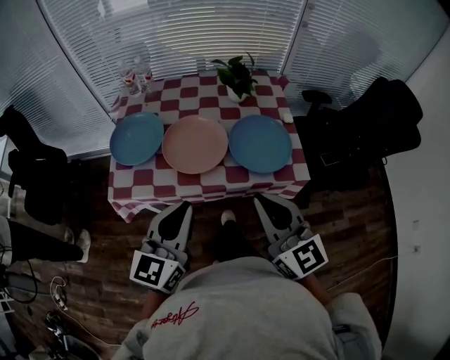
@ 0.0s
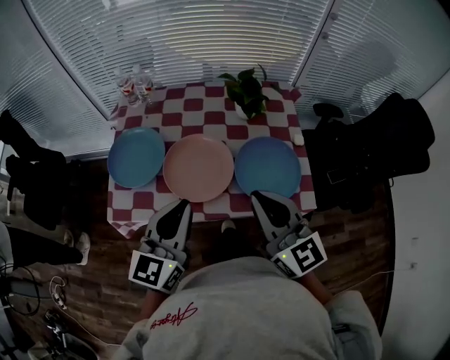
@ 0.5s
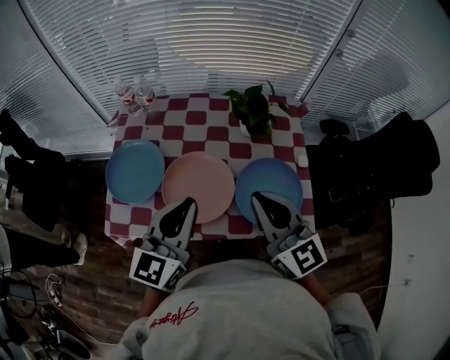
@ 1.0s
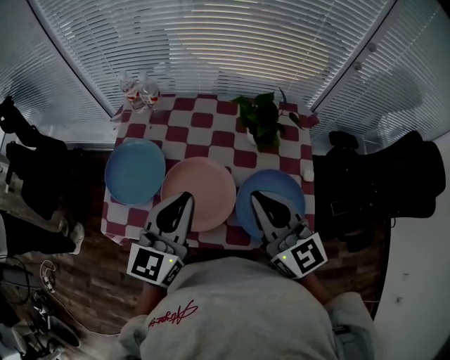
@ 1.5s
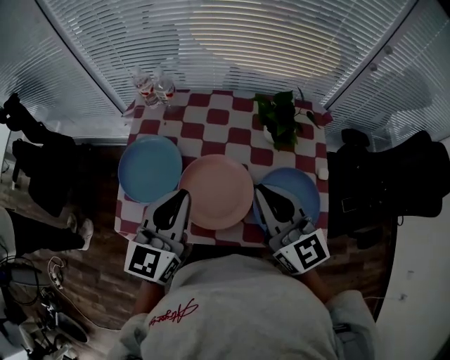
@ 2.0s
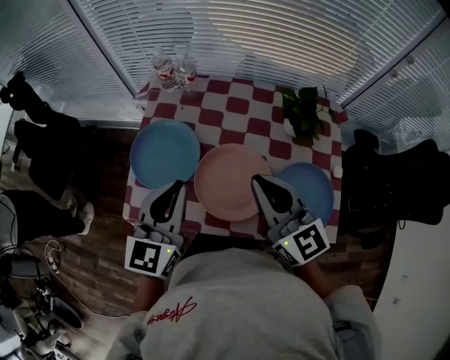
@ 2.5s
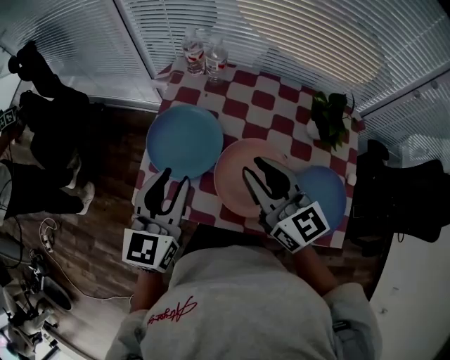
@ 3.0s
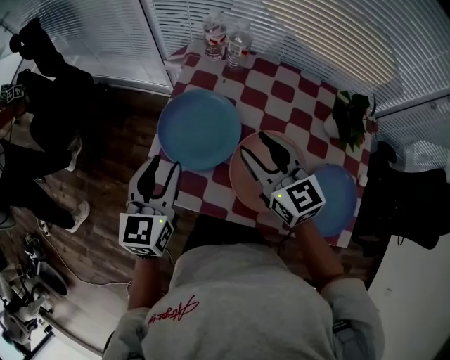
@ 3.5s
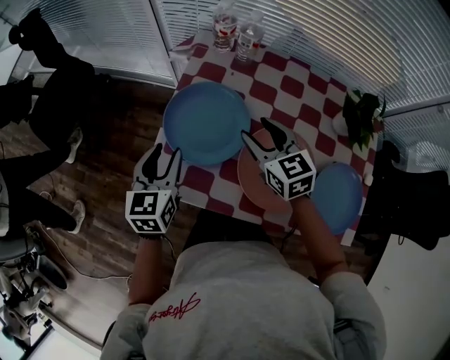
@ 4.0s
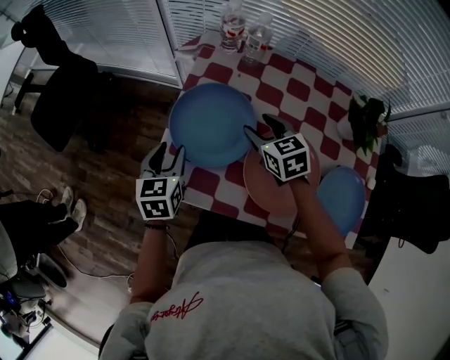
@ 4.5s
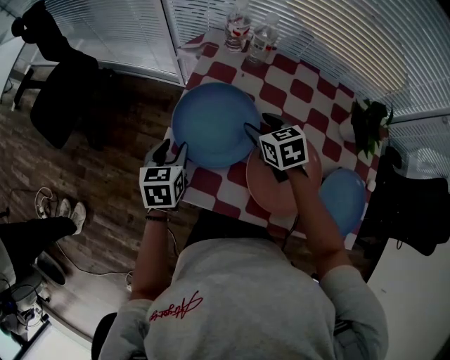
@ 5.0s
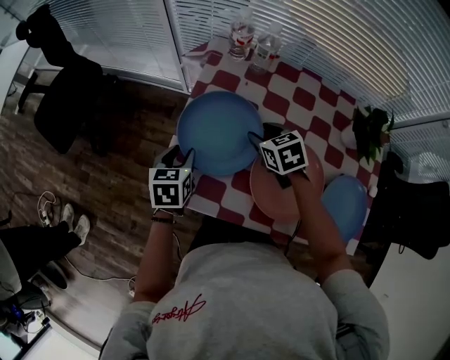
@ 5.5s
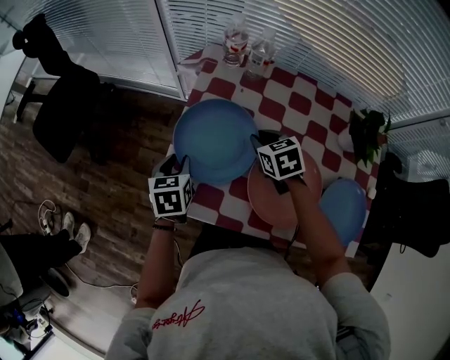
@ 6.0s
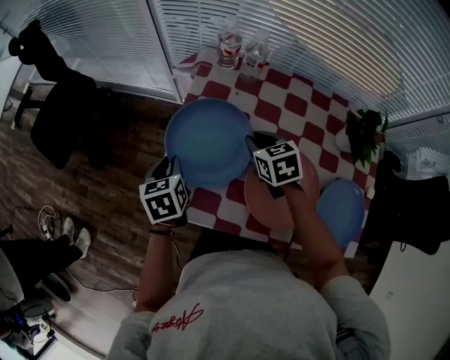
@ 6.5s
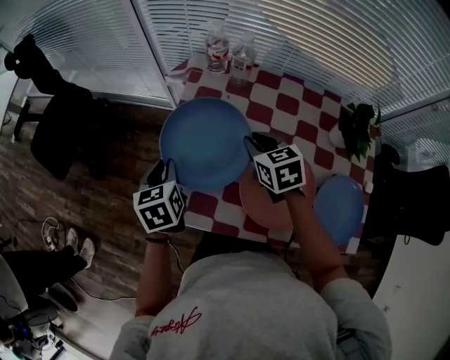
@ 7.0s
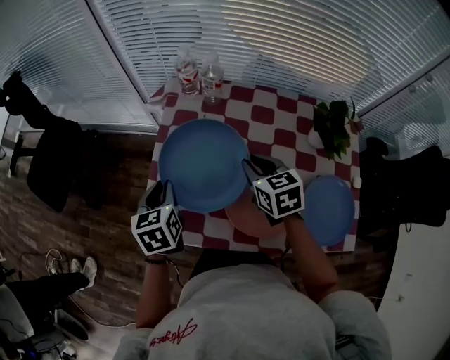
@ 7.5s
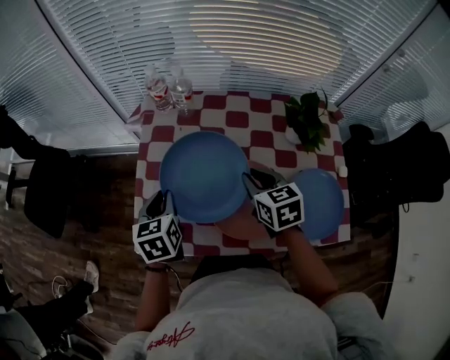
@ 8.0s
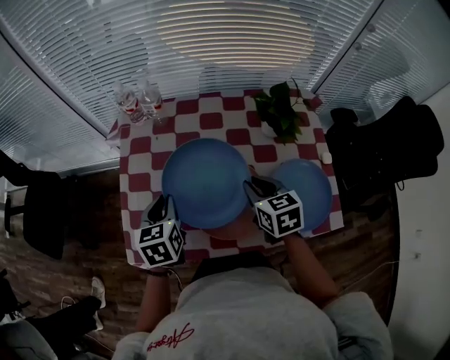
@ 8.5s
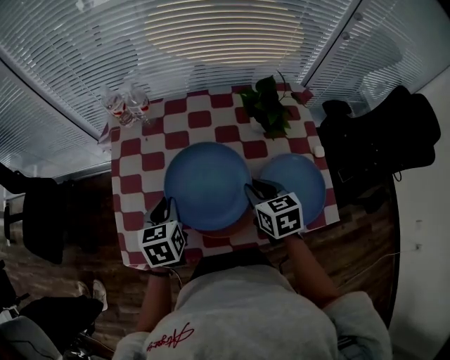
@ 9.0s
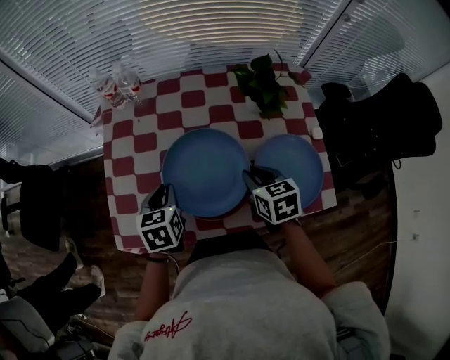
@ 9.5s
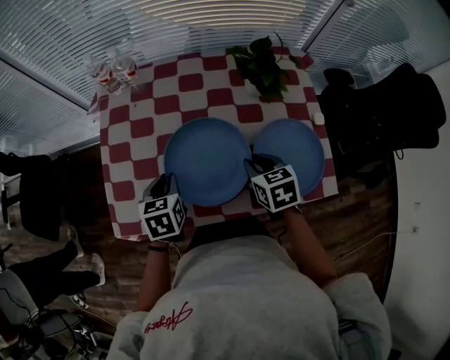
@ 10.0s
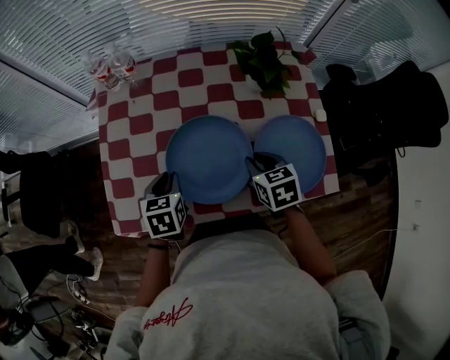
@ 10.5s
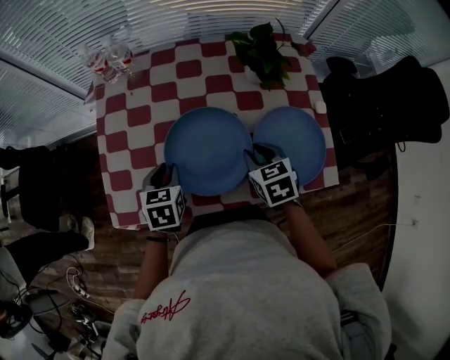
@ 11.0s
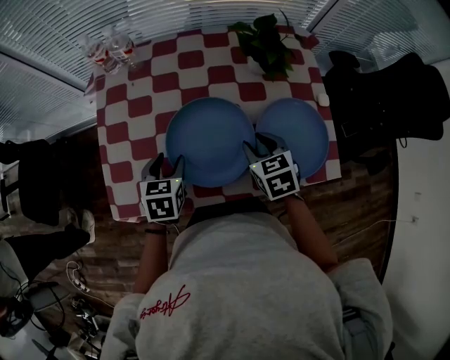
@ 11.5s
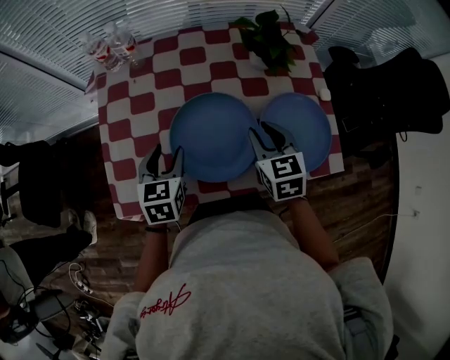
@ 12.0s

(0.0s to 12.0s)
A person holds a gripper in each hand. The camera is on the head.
0.0s - 2.0s: The two grippers go about 25 cm forward.
2.0s - 4.0s: The left gripper travels to the left and downward by some 30 cm, turns by approximately 30 degrees, and opens; the right gripper shifts some 30 cm to the left, downward and forward, swivels some 30 degrees, and opens up.
4.0s - 6.0s: The grippers both shift downward by roughly 10 cm. The right gripper changes its angle by some 20 degrees, and closes. The left gripper changes its angle by roughly 20 degrees.
6.0s - 8.0s: The right gripper travels to the right, backward and upward by some 15 cm, and swivels roughly 20 degrees. The left gripper heads to the right and upward, covering approximately 15 cm.
8.0s - 10.0s: The left gripper shifts roughly 15 cm to the right and downward; the right gripper shifts approximately 15 cm to the right, backward and downward.
10.0s - 12.0s: The left gripper opens up.

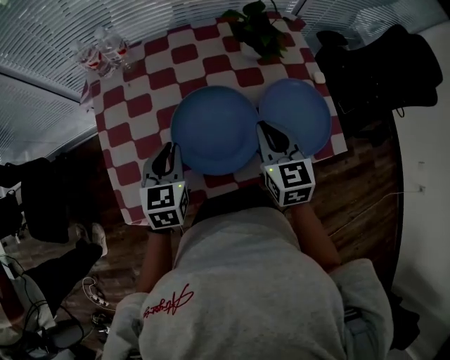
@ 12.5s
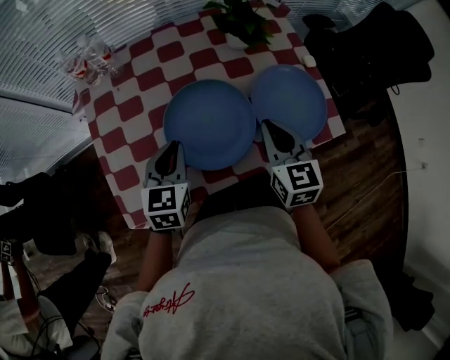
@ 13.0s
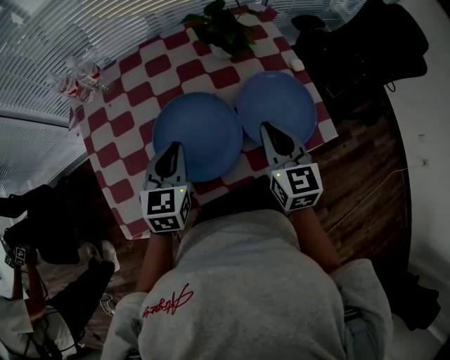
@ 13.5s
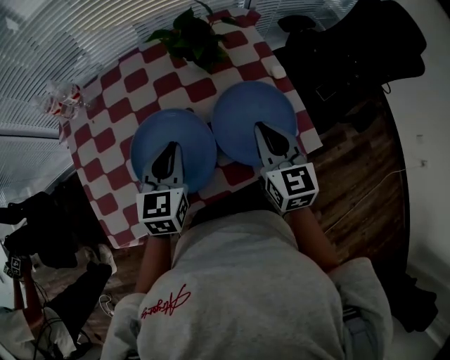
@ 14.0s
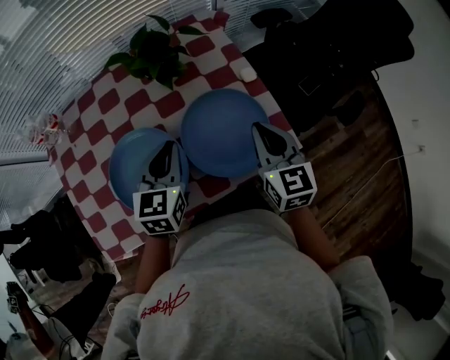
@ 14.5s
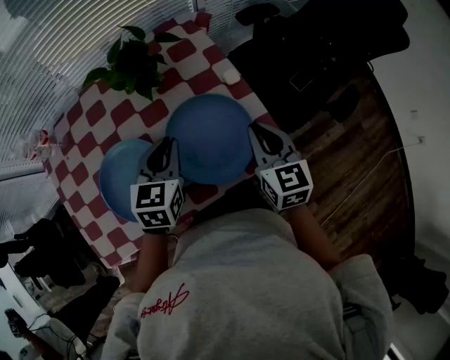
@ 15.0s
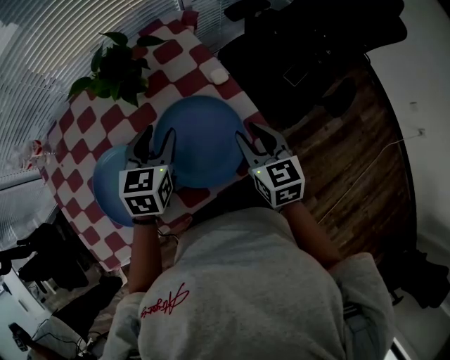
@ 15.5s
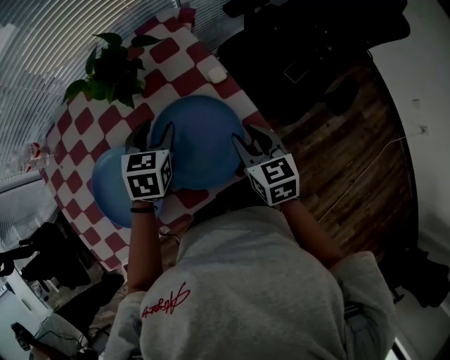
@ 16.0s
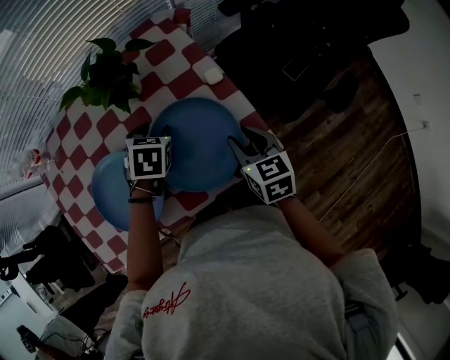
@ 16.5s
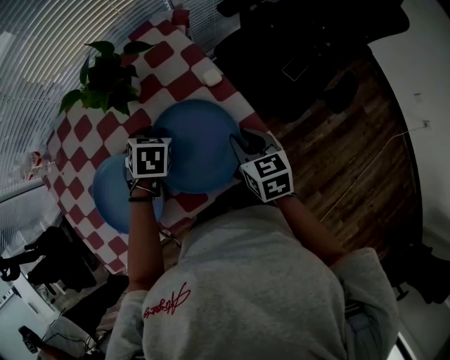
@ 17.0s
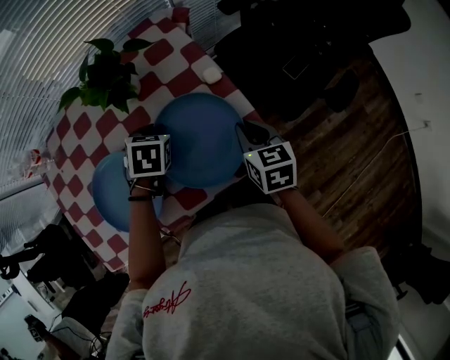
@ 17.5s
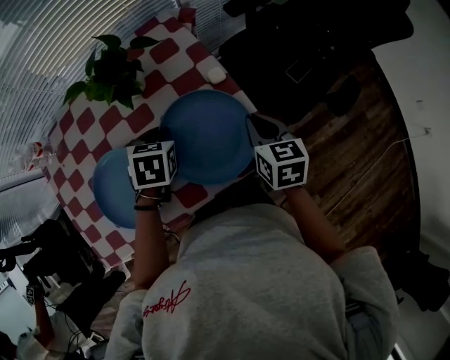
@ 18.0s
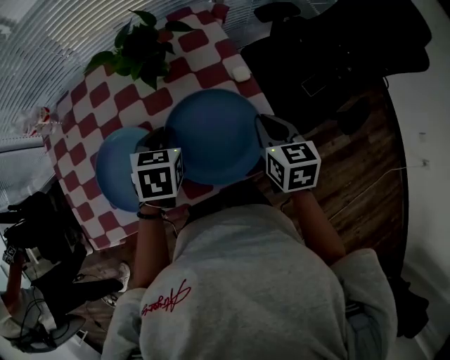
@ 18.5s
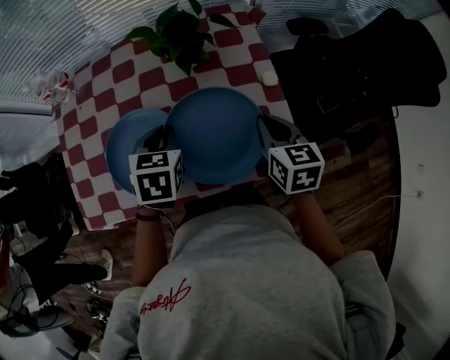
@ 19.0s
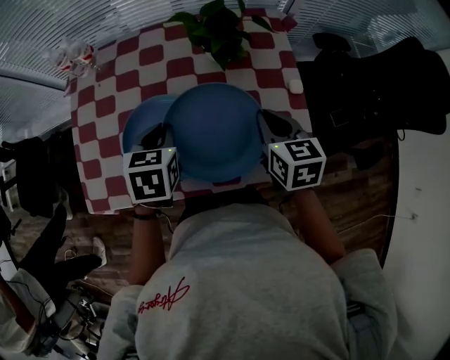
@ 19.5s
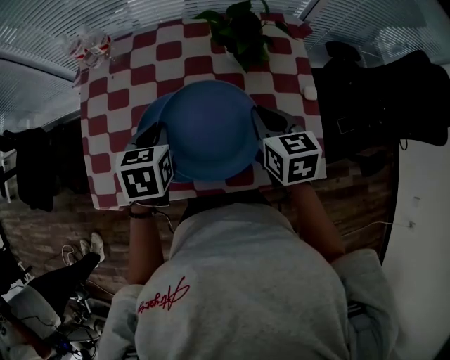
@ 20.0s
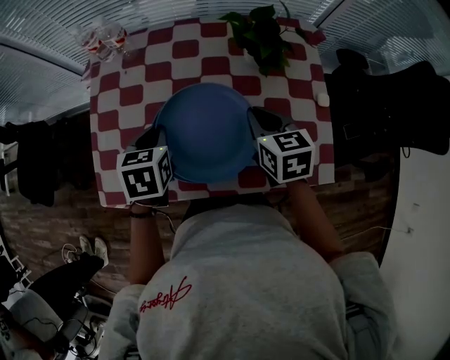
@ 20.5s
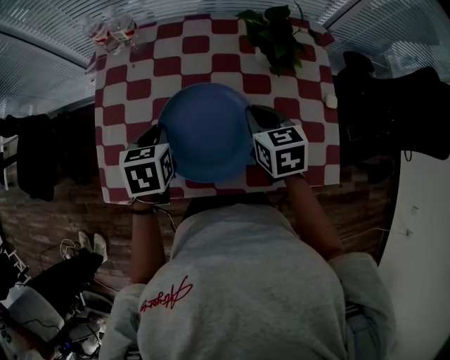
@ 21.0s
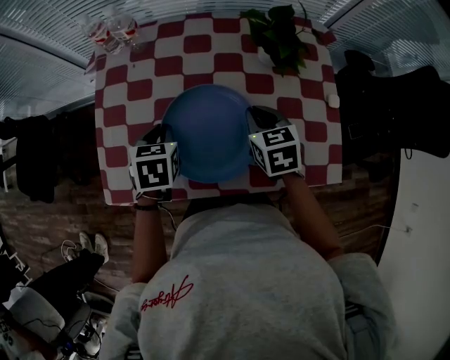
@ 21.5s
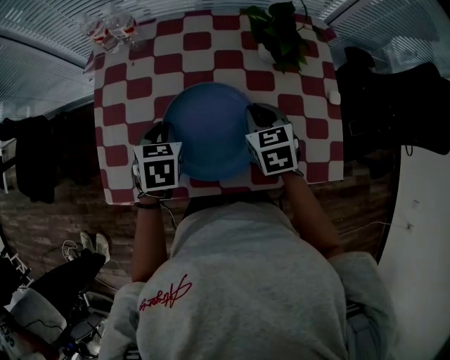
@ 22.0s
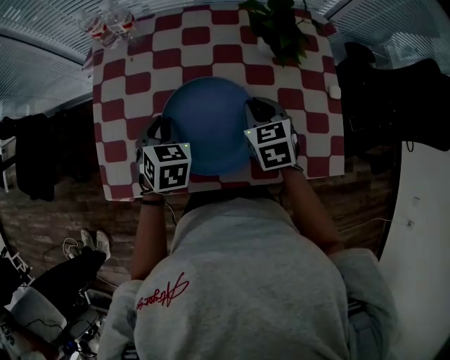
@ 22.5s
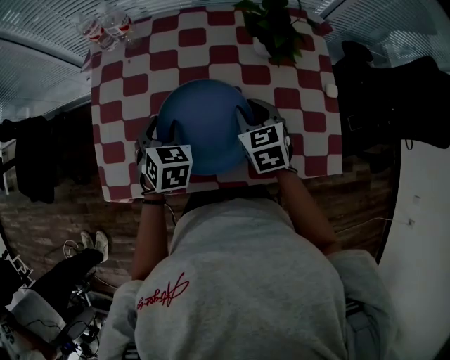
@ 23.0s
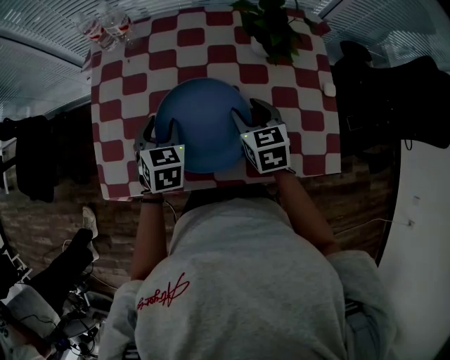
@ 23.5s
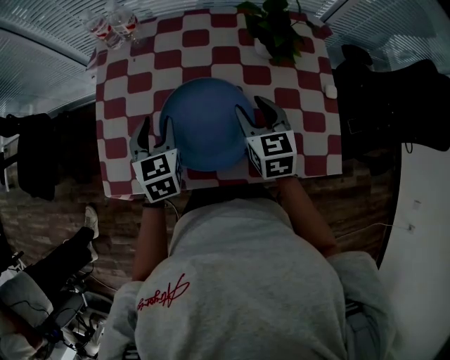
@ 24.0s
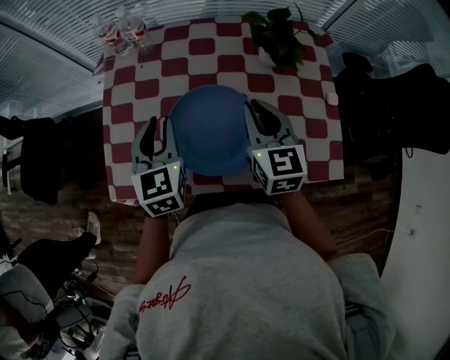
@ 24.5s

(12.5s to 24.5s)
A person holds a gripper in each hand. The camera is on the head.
12.5s - 14.5s: The two grippers go roughly 20 cm to the right.
14.5s - 16.5s: The left gripper shifts approximately 15 cm downward, forward and to the right, tips its fingers downward by approximately 30 degrees, and opens its fingers; the right gripper heads downward, covering about 10 cm, and opens.
16.5s - 18.5s: The left gripper travels upward and backward by about 10 cm, and closes up; the right gripper changes place by some 5 cm, and closes its fingers.
18.5s - 20.5s: The two grippers go approximately 25 cm to the left. The right gripper swivels roughly 20 degrees. Meanwhile the left gripper rotates some 20 degrees.
20.5s - 22.5s: The left gripper shifts by about 5 cm, while the right gripper heads downward, covering approximately 5 cm.
22.5s - 24.5s: Both grippers travel together upward, roughly 10 cm. The left gripper turns by about 30 degrees, and opens, then closes again, while the right gripper swivels some 30 degrees, and opens, then closes again.

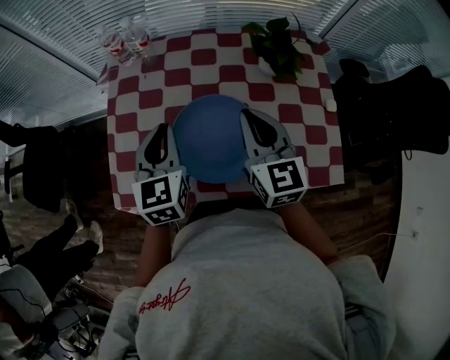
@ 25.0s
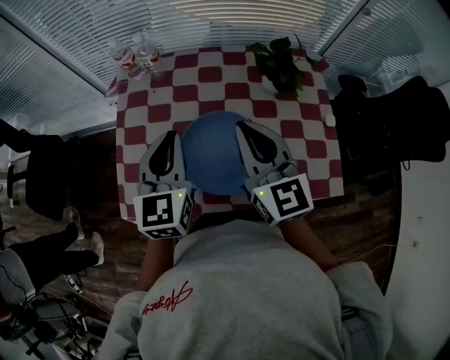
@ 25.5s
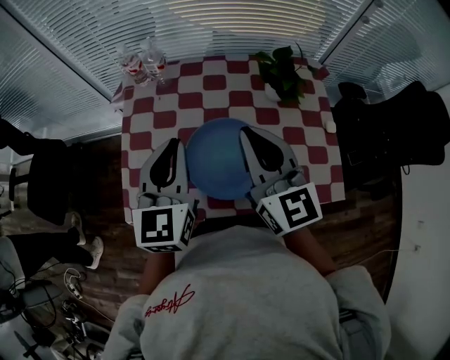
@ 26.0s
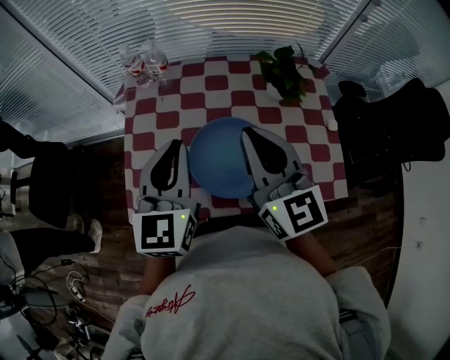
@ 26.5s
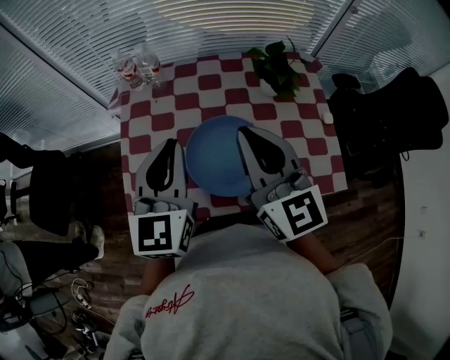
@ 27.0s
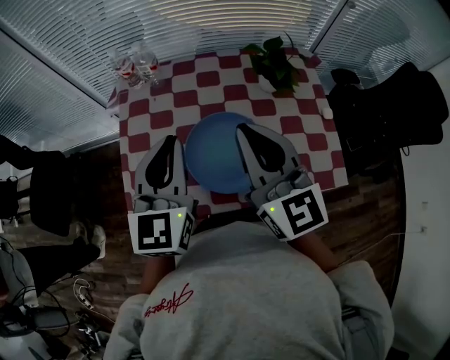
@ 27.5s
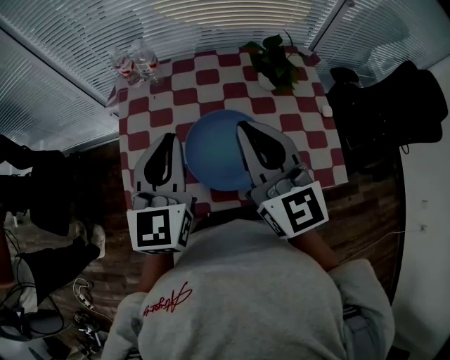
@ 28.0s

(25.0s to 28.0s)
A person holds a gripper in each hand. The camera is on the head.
25.0s - 26.5s: The left gripper moves upward, some 10 cm. Meanwhile the right gripper moves upward and to the left, about 15 cm.
26.5s - 28.0s: The grippers make only small movements.
